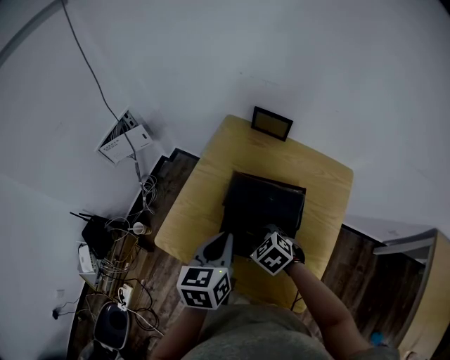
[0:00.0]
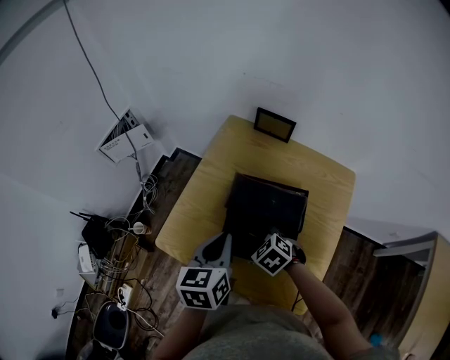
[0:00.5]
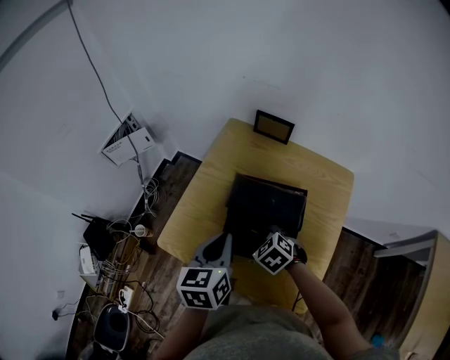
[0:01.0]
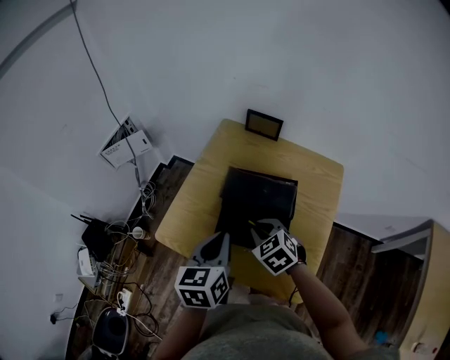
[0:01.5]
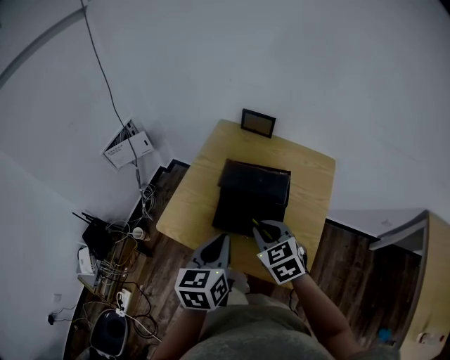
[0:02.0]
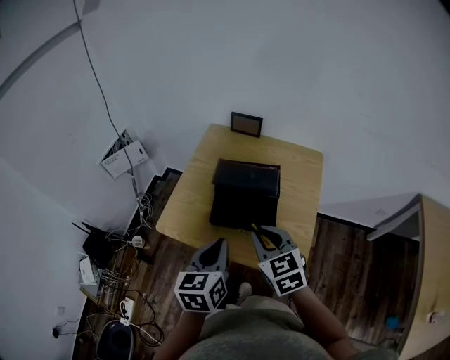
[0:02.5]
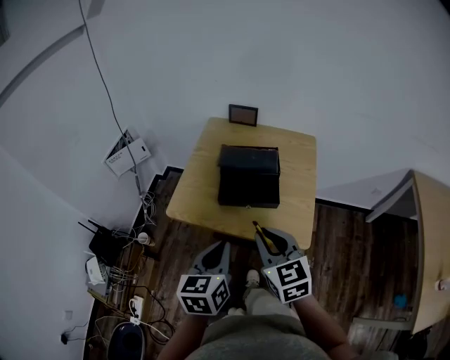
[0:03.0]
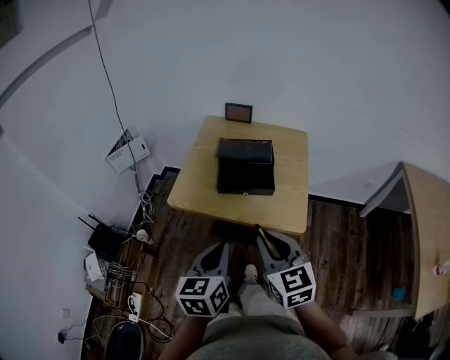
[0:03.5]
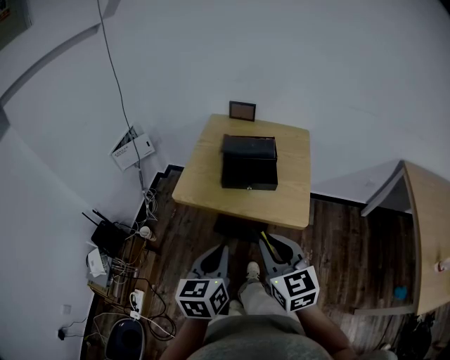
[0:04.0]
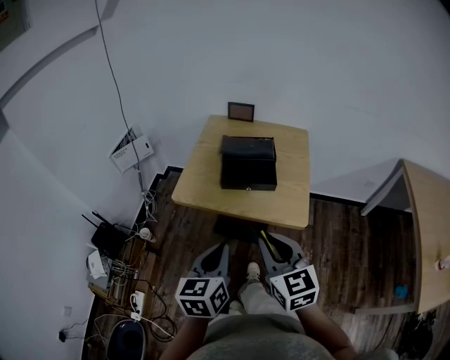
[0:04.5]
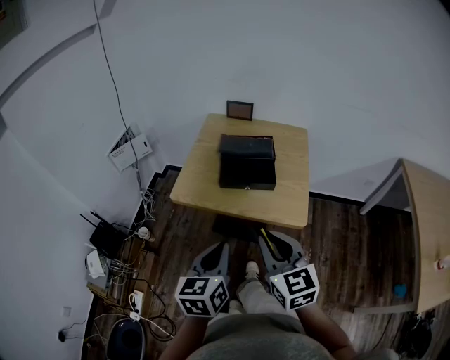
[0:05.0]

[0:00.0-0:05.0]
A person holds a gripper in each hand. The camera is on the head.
0:00.0 to 0:02.5: The right gripper heads upward and backward, covering some 20 cm, and tips its fingers upward by about 30 degrees, while the left gripper goes some 15 cm backward.
0:02.5 to 0:05.0: The grippers both shift backward by about 20 cm.

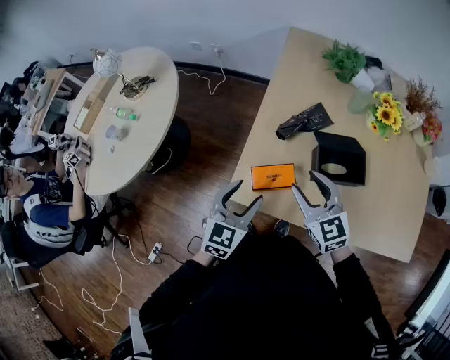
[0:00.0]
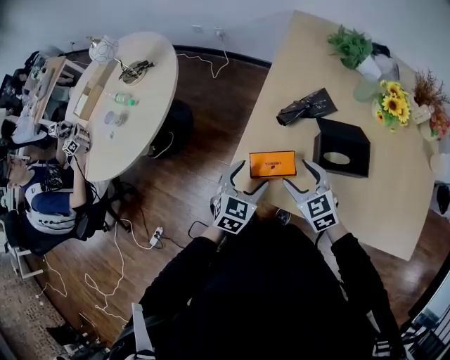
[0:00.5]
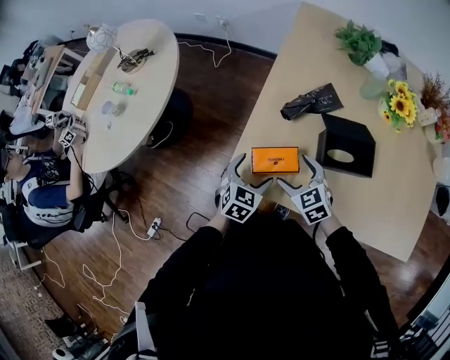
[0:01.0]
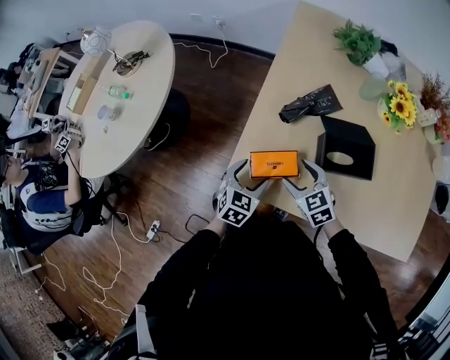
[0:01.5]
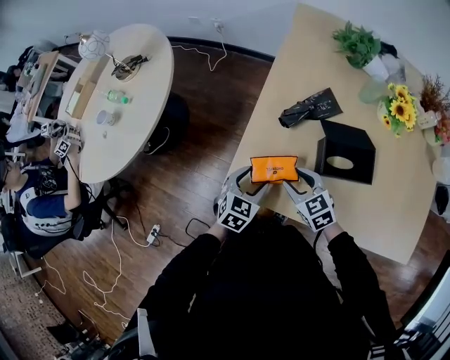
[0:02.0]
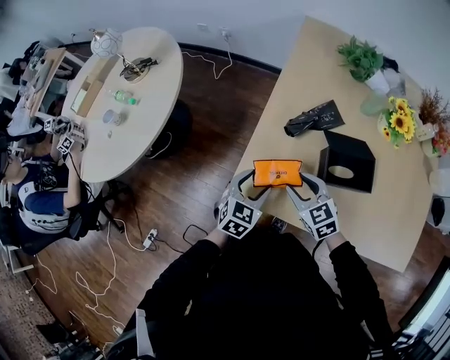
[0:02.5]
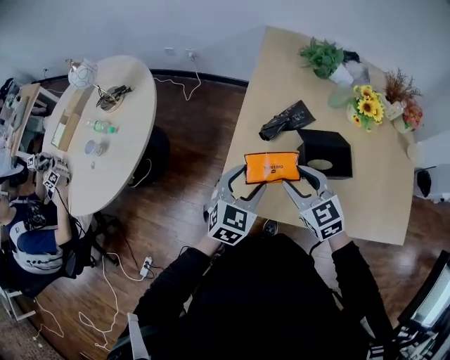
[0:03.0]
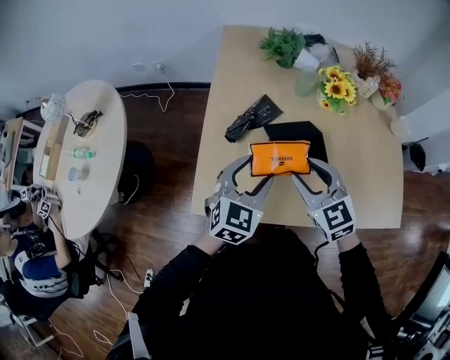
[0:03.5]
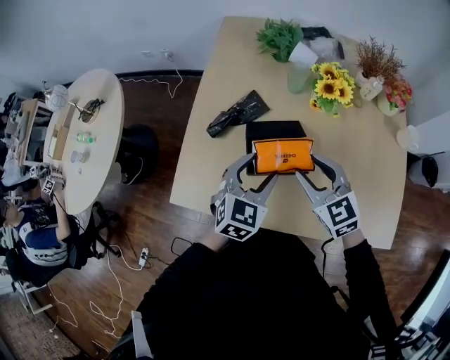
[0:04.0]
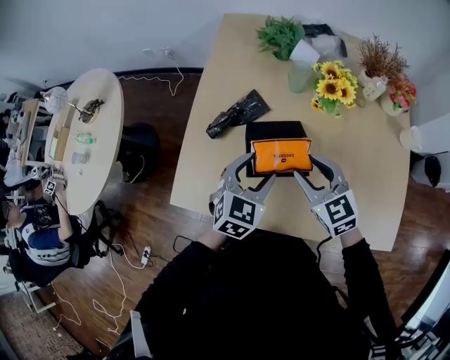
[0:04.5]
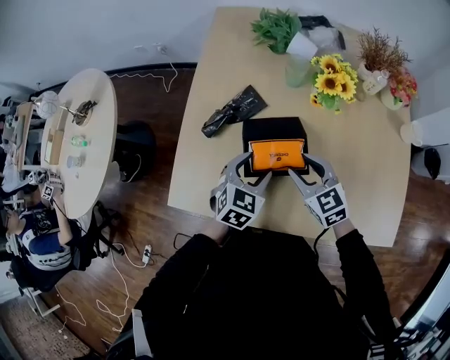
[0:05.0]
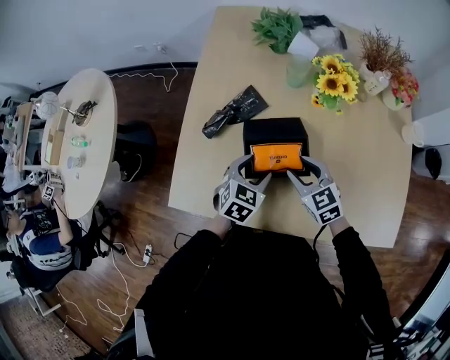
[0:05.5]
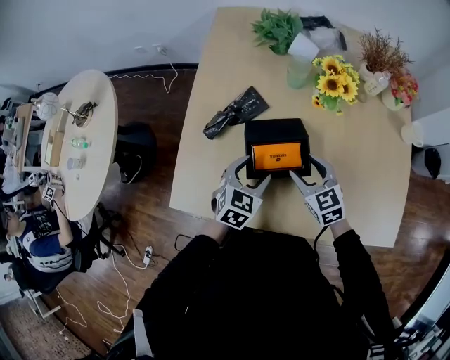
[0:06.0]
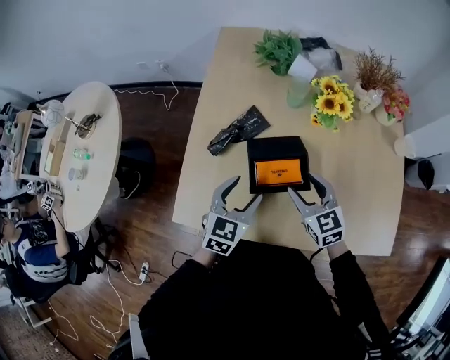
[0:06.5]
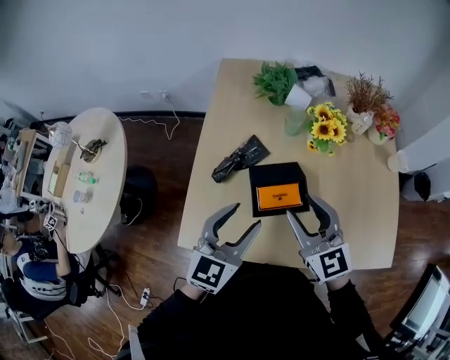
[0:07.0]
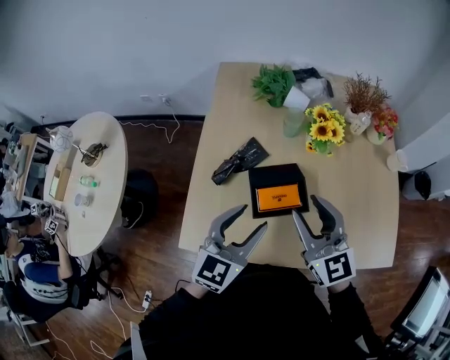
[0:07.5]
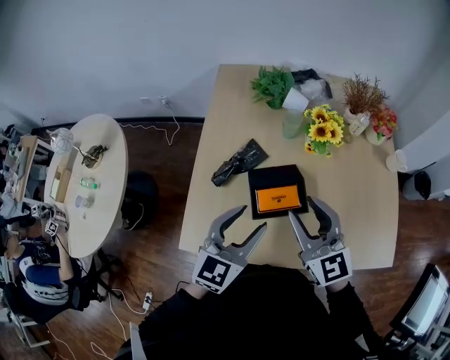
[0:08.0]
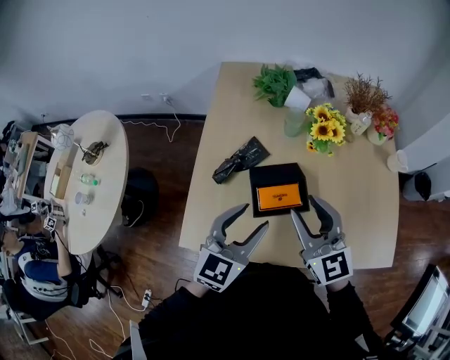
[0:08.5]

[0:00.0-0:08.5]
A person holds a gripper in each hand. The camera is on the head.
0:00.0 to 0:02.0: Both grippers travel together downward, roughly 15 cm. The left gripper opens, then closes again, while the right gripper swivels approximately 20 degrees, and opens, then closes again.
0:02.0 to 0:04.0: Both grippers travel together to the right and upward, about 30 cm.
0:04.0 to 0:06.5: The left gripper moves to the left, some 5 cm, and travels downward and back again, roughly 10 cm each way; the right gripper heads downward, covering some 5 cm.
0:06.5 to 0:08.5: Both grippers travel together upward, roughly 15 cm. The right gripper changes its angle by some 20 degrees.

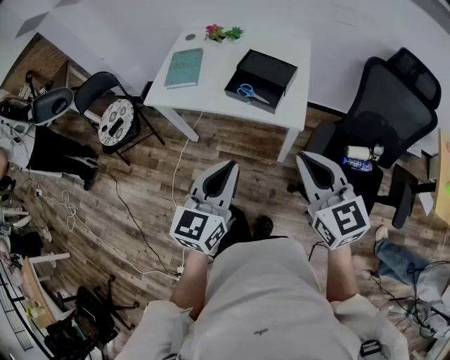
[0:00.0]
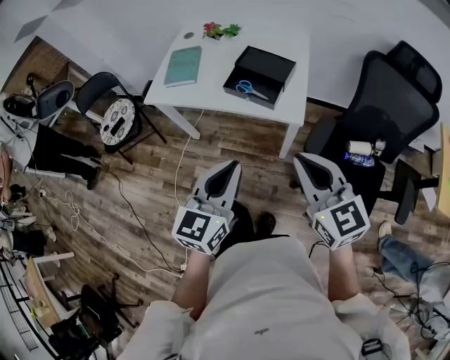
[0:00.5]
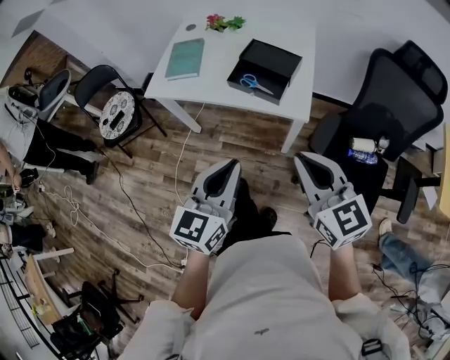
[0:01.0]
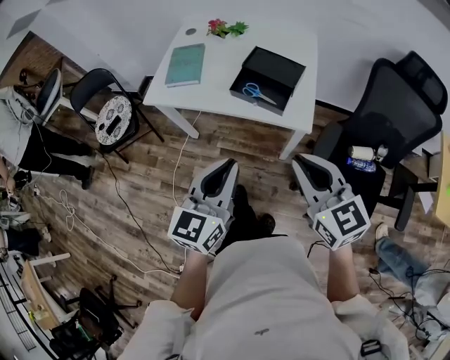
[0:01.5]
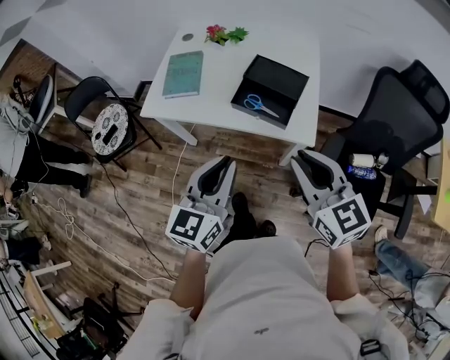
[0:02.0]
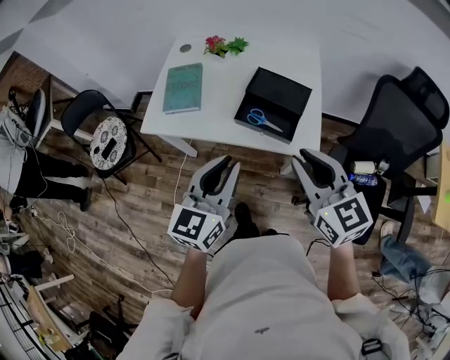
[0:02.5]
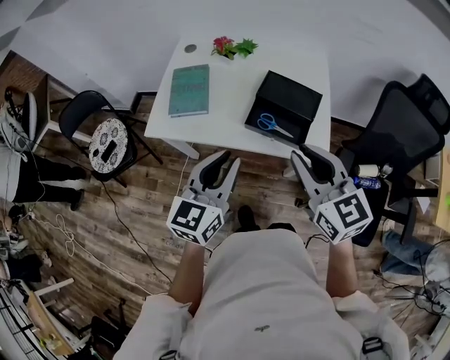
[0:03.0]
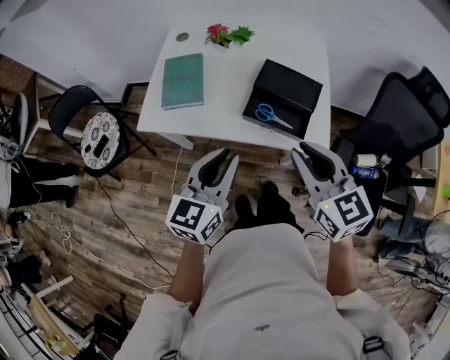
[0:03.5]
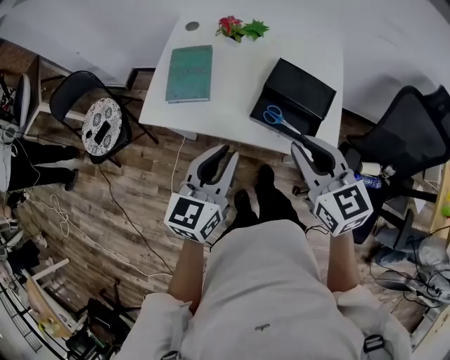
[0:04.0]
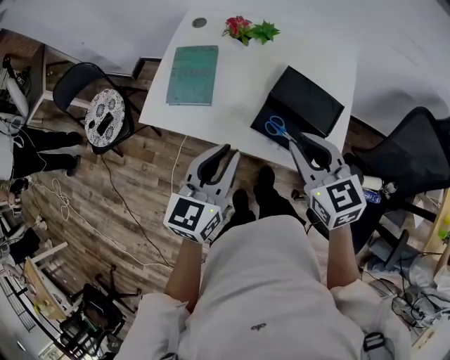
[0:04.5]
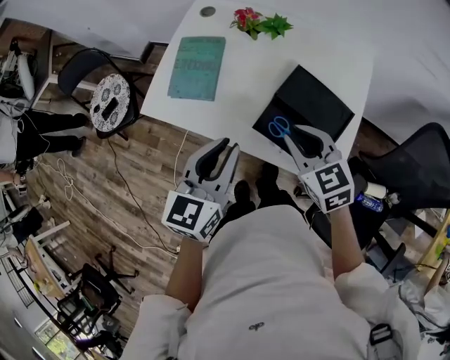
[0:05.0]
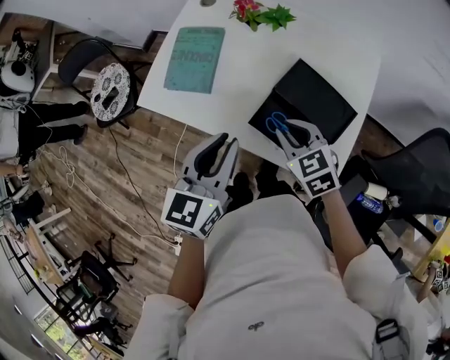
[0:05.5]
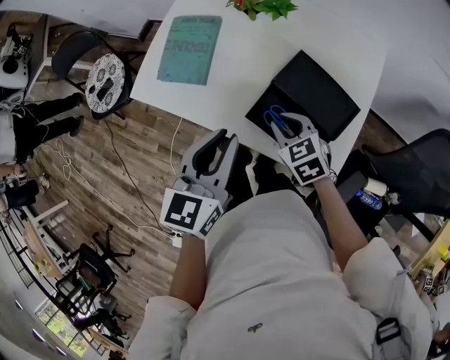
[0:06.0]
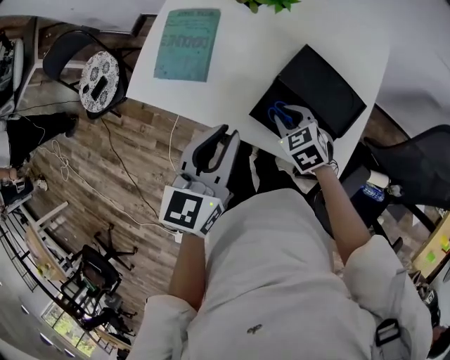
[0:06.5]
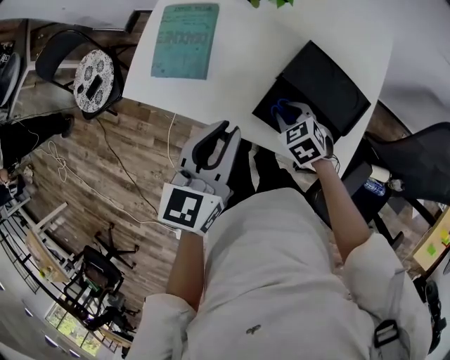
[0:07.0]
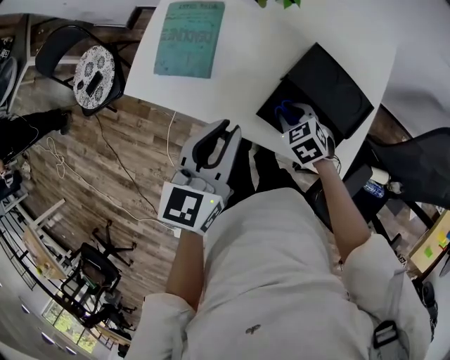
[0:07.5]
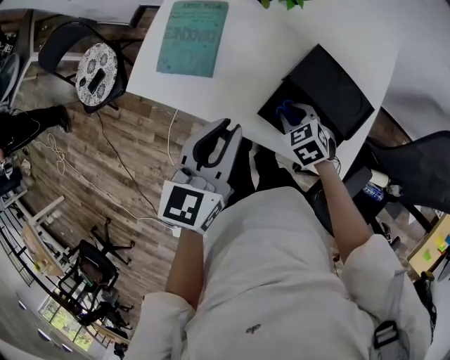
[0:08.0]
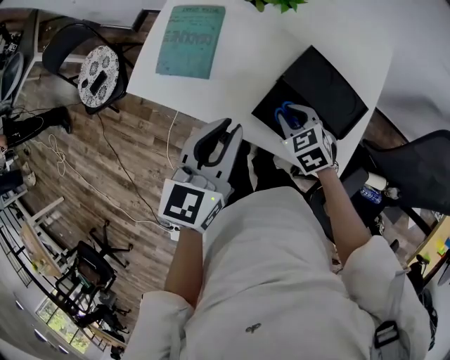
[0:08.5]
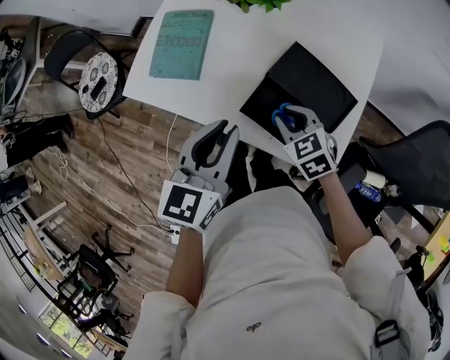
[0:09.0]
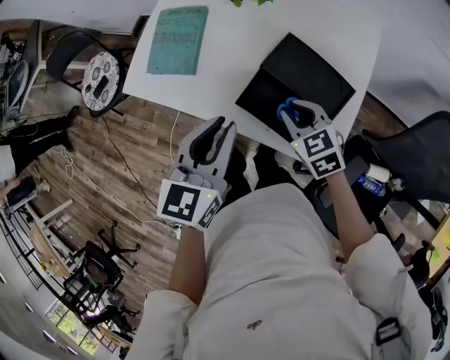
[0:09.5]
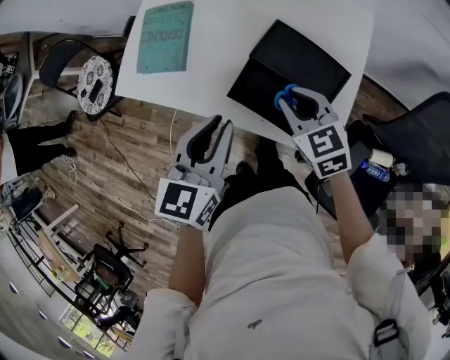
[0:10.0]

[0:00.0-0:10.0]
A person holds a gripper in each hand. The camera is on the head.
0:00.0 to 0:02.0: Both grippers travel together forward, approximately 10 cm.
0:02.0 to 0:04.0: The grippers both shift forward and to the left by about 15 cm.
0:04.0 to 0:06.0: The left gripper heads forward and to the right, covering about 10 cm, while the right gripper moves downward and forward, about 25 cm, and rotates some 30 degrees.
0:06.0 to 0:08.0: The right gripper is displaced downward by approximately 5 cm.
0:08.0 to 0:10.0: The right gripper moves upward and to the right, roughly 15 cm, and changes its angle by about 20 degrees, while the left gripper shifts roughly 5 cm to the right.

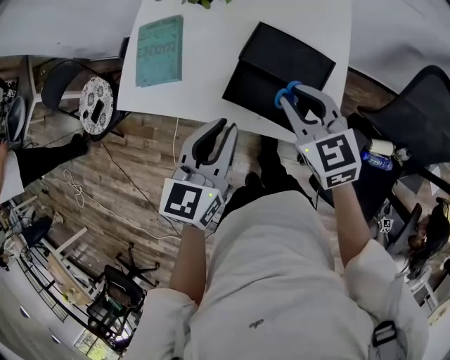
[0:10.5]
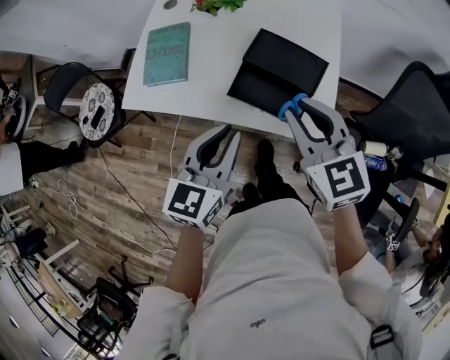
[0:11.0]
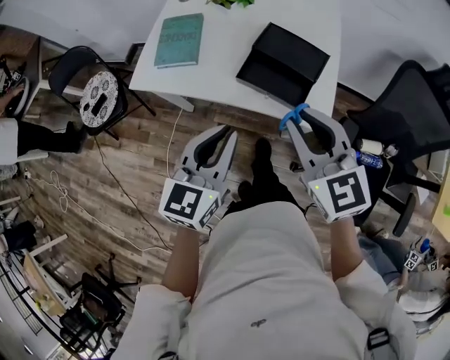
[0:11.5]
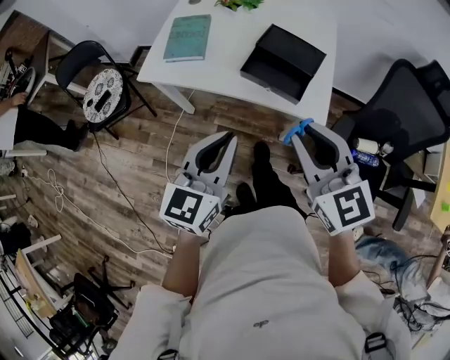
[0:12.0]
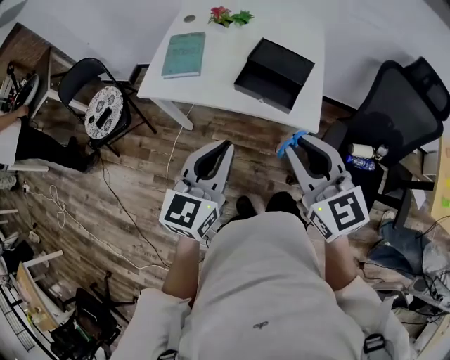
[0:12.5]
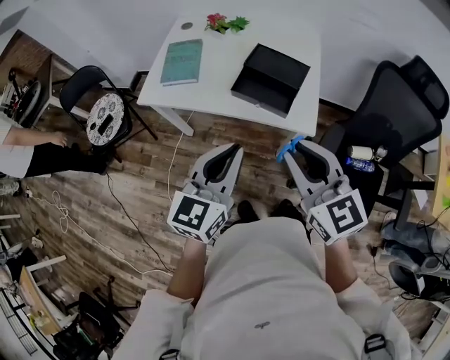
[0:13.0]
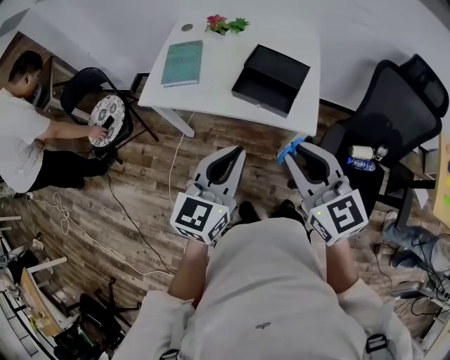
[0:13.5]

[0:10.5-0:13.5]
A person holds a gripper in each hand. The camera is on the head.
0:10.5 to 0:12.0: The left gripper is displaced backward by some 20 cm, while the right gripper moves backward and upward, approximately 30 cm.
0:12.0 to 0:13.5: The left gripper shifts by about 5 cm.
